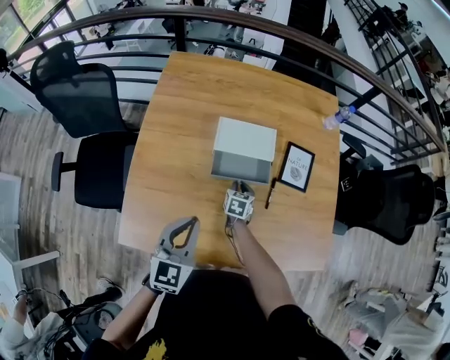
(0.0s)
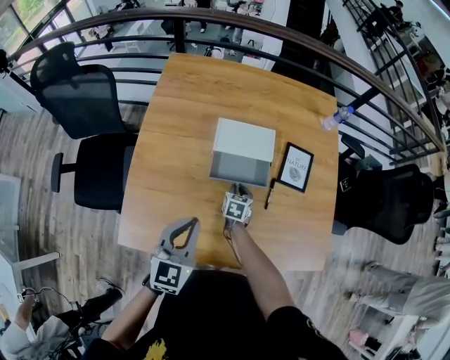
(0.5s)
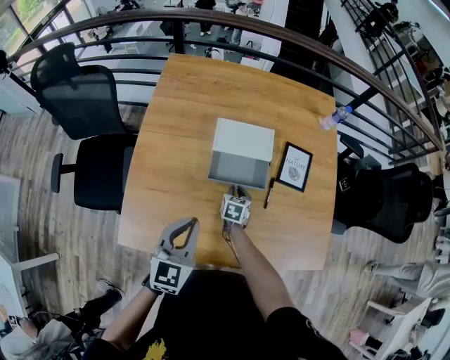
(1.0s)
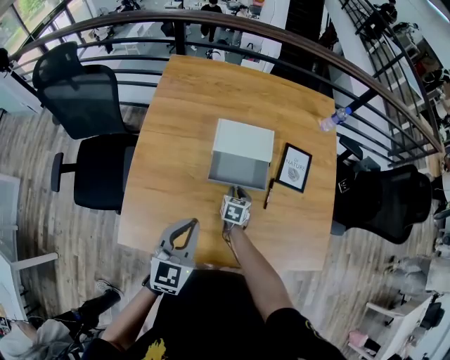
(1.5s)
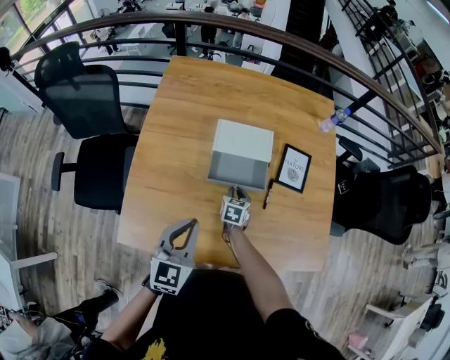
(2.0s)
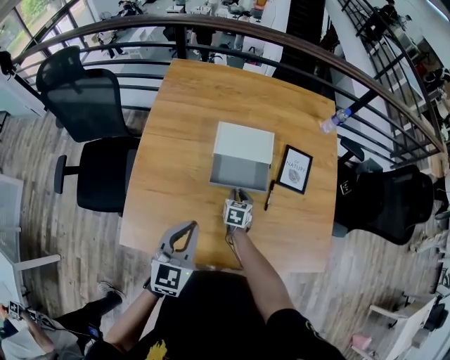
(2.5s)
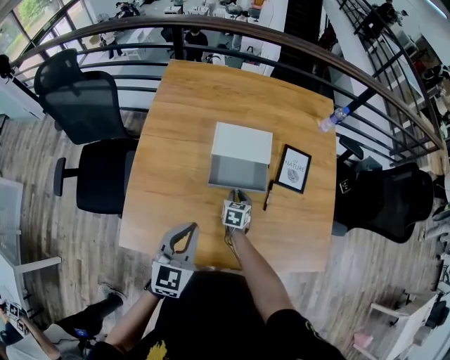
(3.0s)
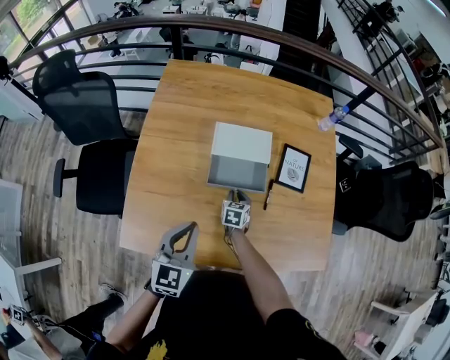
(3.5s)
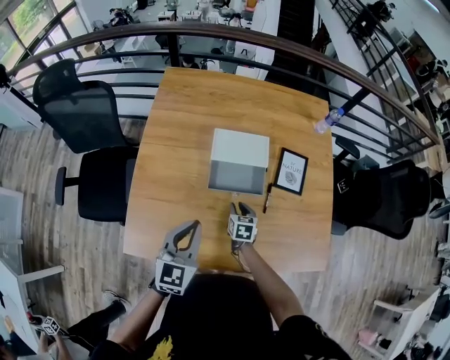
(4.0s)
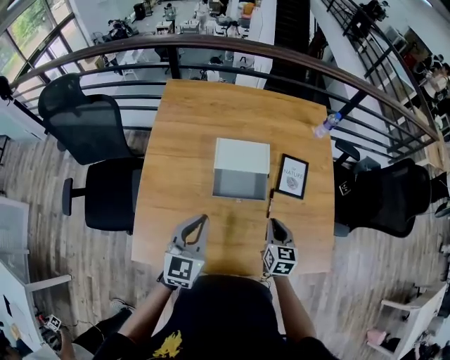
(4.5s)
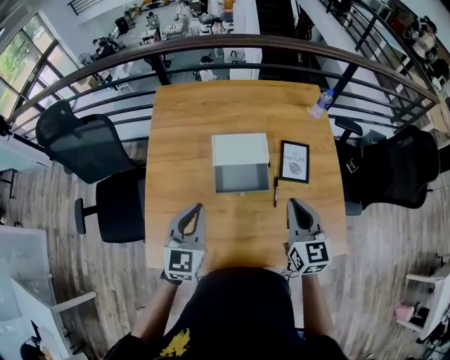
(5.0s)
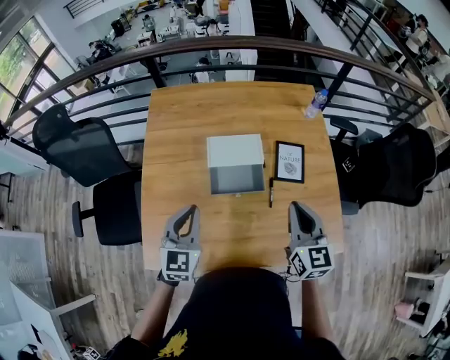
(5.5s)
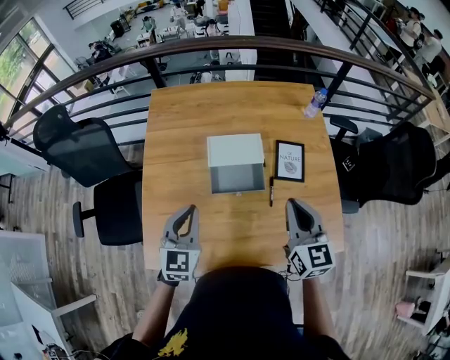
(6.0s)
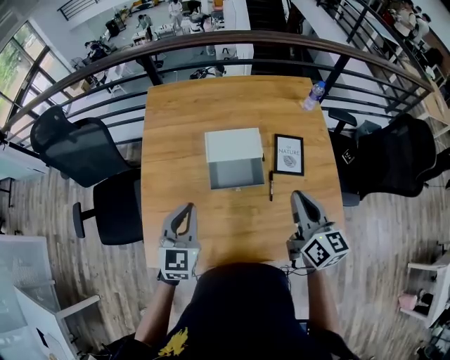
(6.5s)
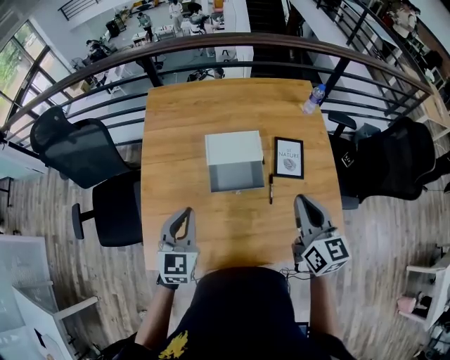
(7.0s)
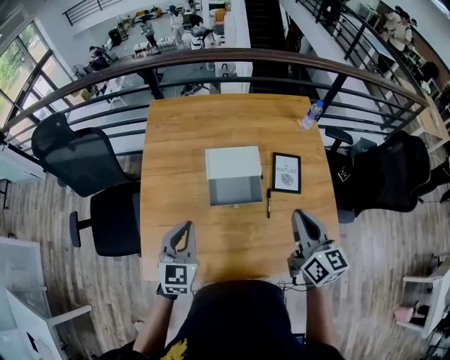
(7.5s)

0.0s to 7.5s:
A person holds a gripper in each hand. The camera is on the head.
0.0s to 2.0s: There are only small adjustments of the grippers.
2.0s to 4.0s: There are only small adjustments of the grippers.
4.0s to 5.5s: The right gripper goes approximately 35 cm upward and to the right, angles its fingers upward, by about 30 degrees, and closes up, while the left gripper shifts roughly 5 cm forward.
5.5s to 7.5s: There are only small adjustments of the grippers.

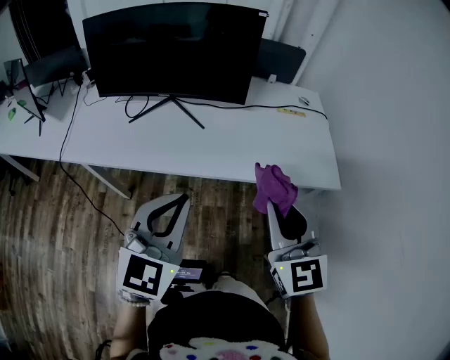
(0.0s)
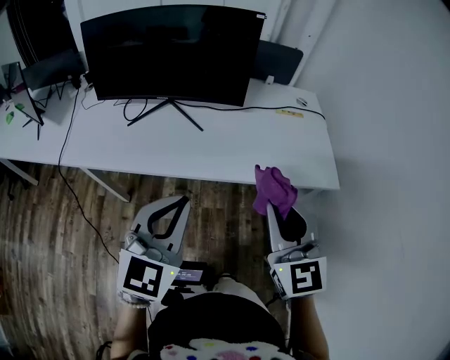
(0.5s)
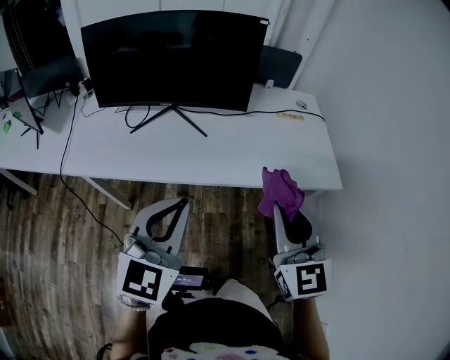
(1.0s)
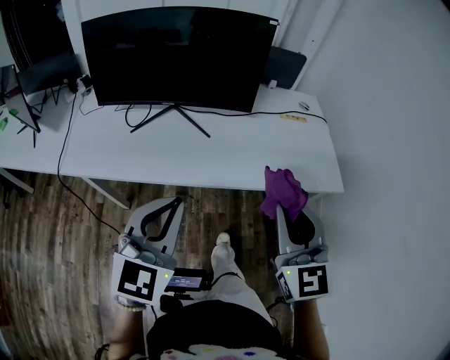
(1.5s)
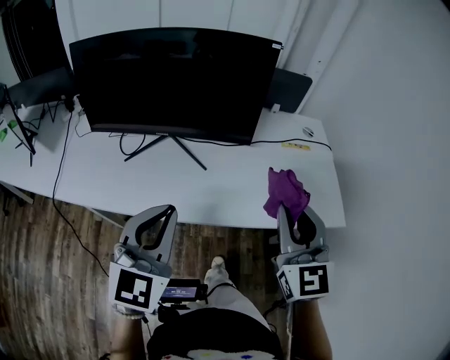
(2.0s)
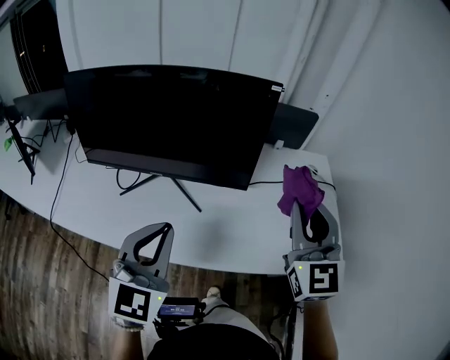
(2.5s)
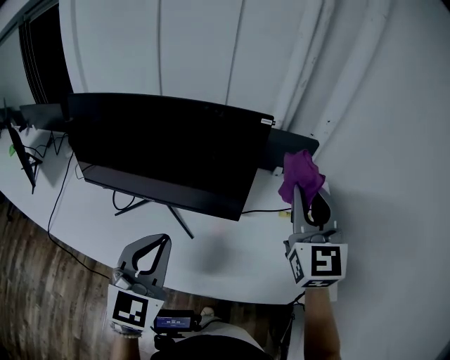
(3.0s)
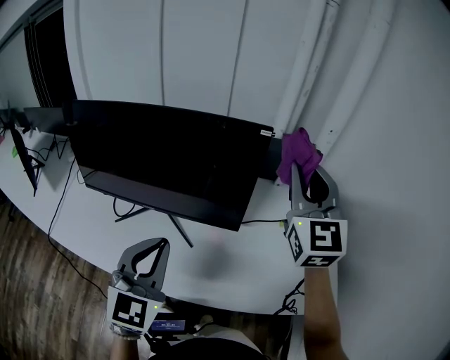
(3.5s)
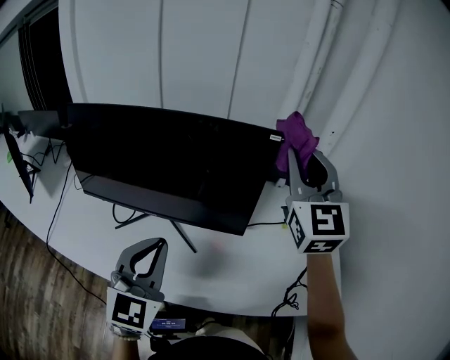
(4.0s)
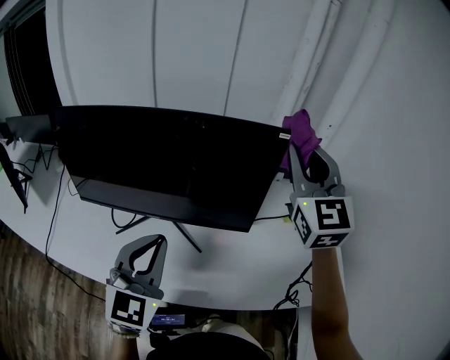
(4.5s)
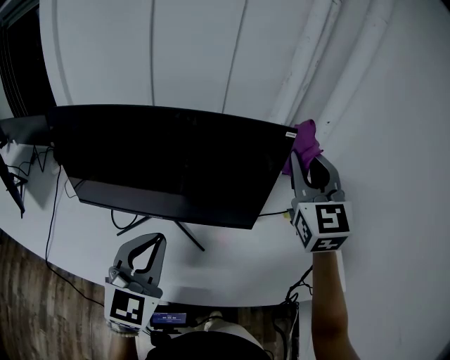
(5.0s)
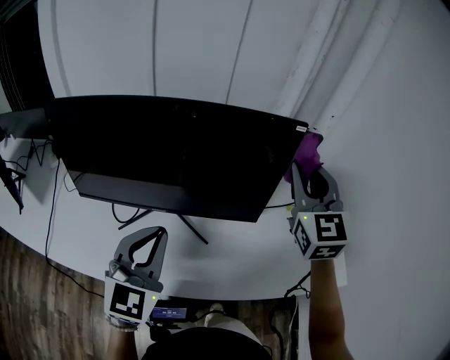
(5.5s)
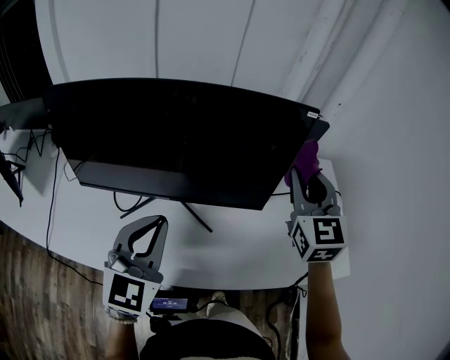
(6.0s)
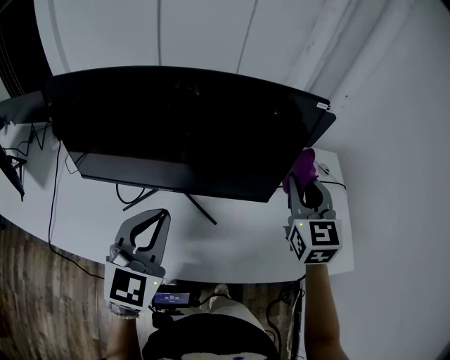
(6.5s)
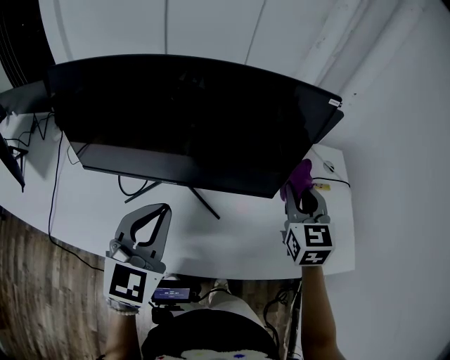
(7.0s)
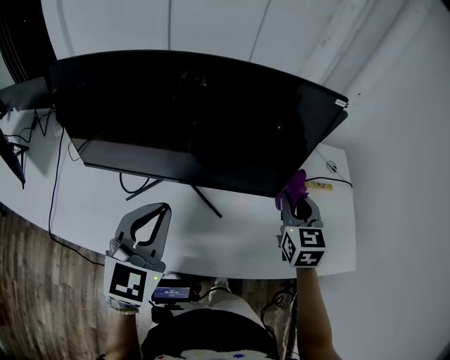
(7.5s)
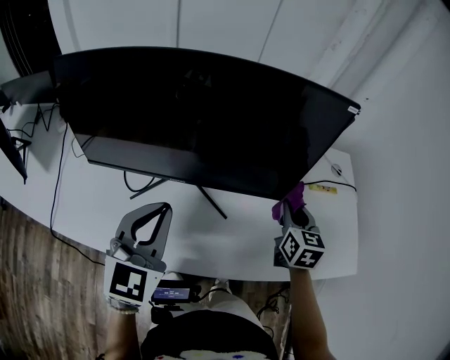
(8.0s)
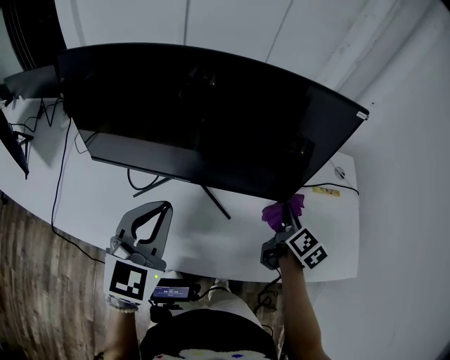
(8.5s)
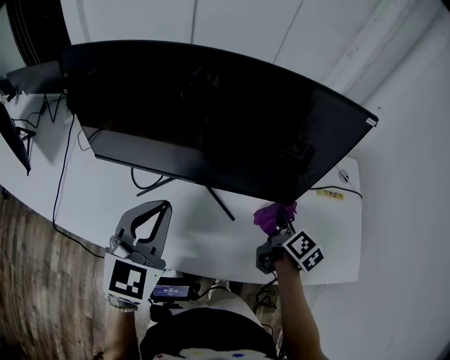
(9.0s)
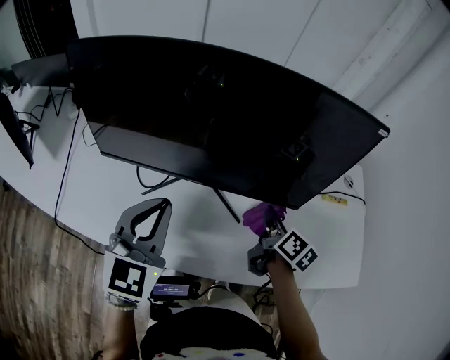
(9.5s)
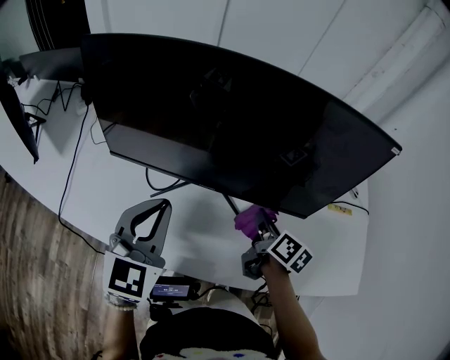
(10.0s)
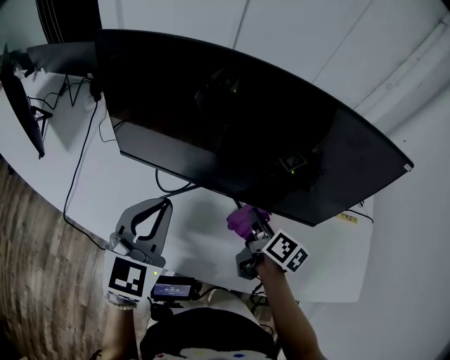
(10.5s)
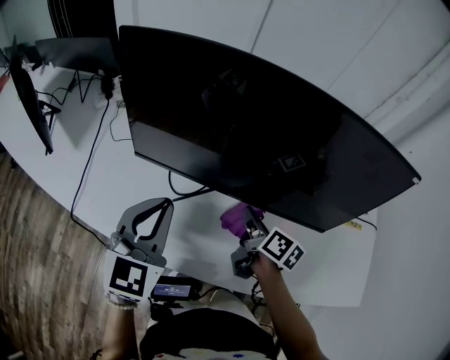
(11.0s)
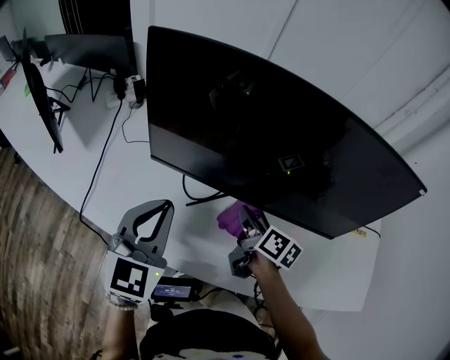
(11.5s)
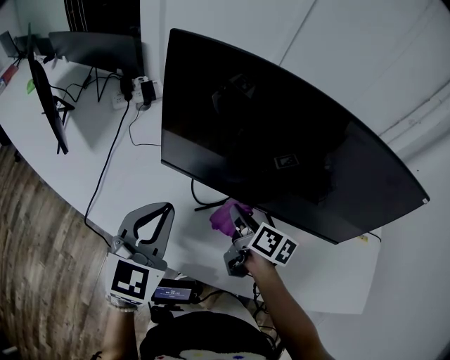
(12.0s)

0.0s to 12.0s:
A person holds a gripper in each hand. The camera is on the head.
0.0s to 2.0s: The left gripper shifts approximately 15 cm forward and to the left, while the right gripper moves forward, roughly 15 cm.
2.0s to 4.0s: The right gripper moves forward and upward, about 35 cm, while the left gripper goes approximately 20 cm forward.
4.0s to 6.0s: The left gripper heads to the left, covering some 10 cm. Meanwhile the right gripper heads downward, covering approximately 10 cm.
6.0s to 8.0s: The right gripper heads downward, covering some 20 cm, and swivels about 30 degrees.
8.0s to 10.0s: The left gripper shifts approximately 10 cm to the left. Meanwhile the right gripper moves to the left, roughly 15 cm, and rotates around the line of its fingers by about 40 degrees, clockwise from behind.
10.0s to 12.0s: The left gripper shifts roughly 15 cm to the left, while the right gripper shifts roughly 25 cm to the left.

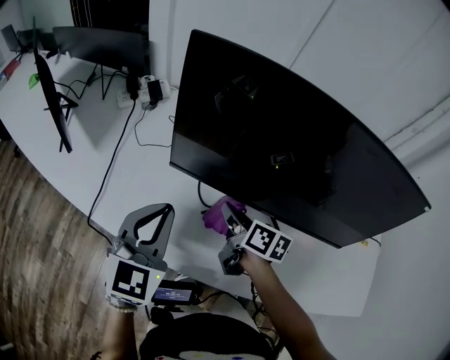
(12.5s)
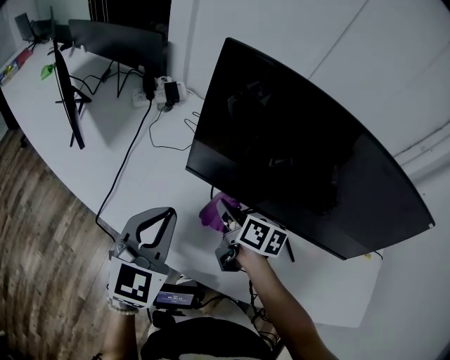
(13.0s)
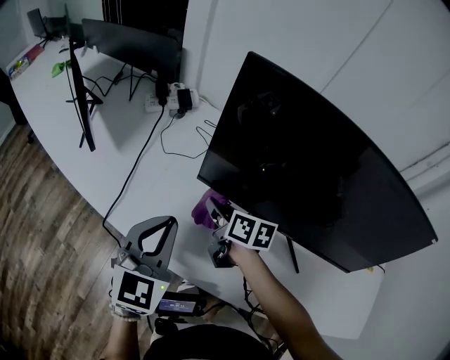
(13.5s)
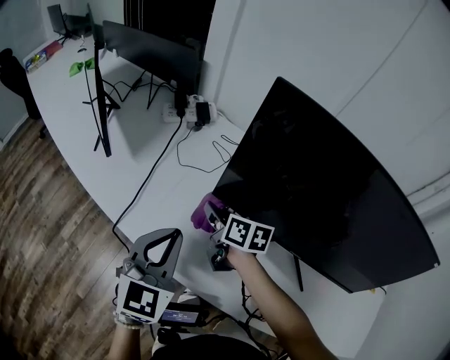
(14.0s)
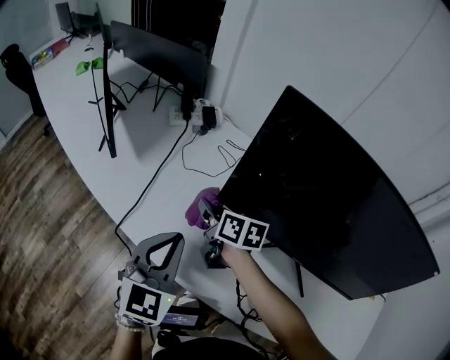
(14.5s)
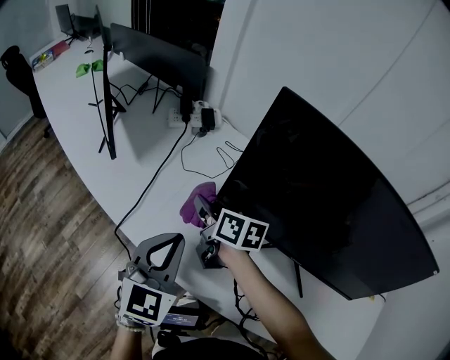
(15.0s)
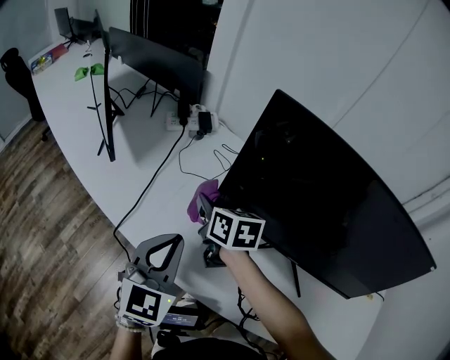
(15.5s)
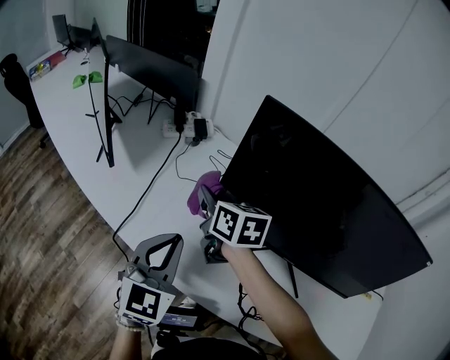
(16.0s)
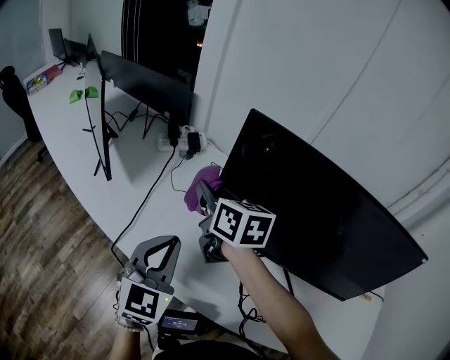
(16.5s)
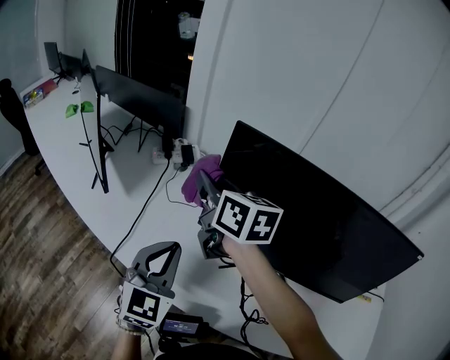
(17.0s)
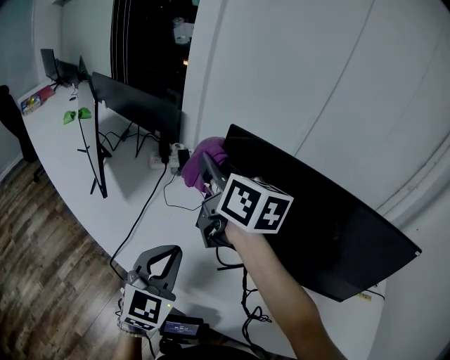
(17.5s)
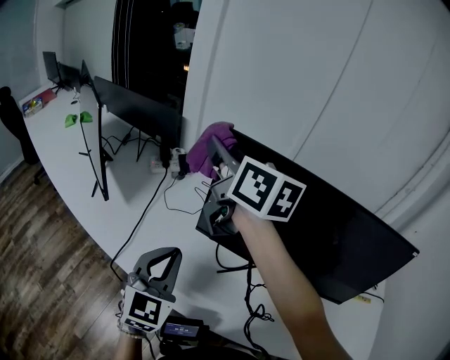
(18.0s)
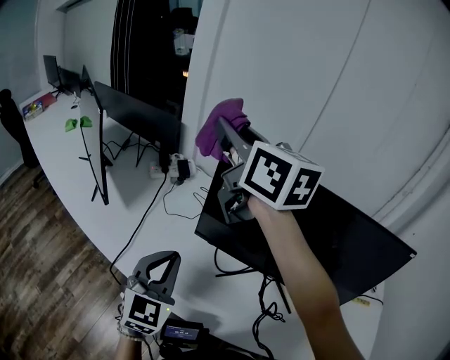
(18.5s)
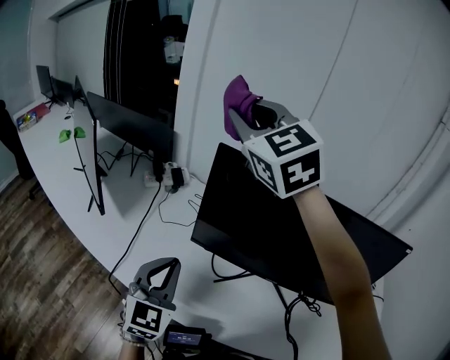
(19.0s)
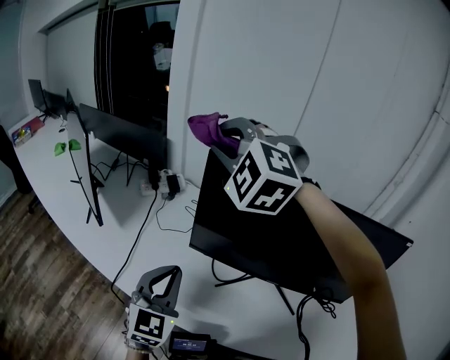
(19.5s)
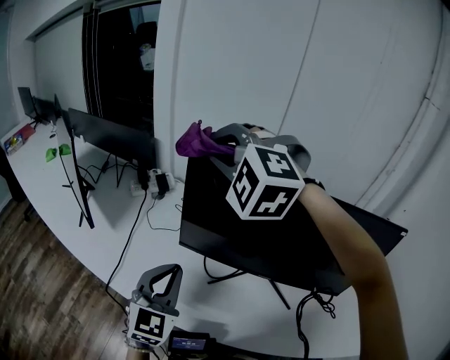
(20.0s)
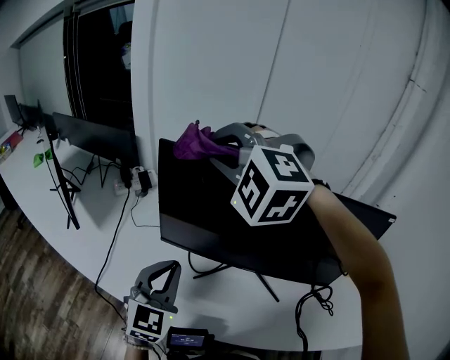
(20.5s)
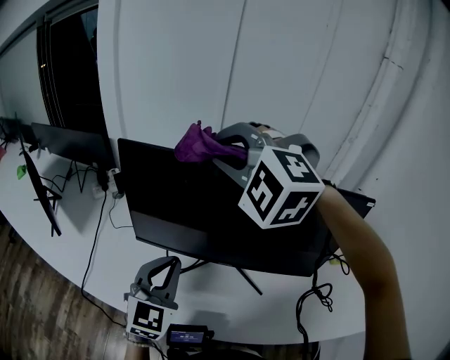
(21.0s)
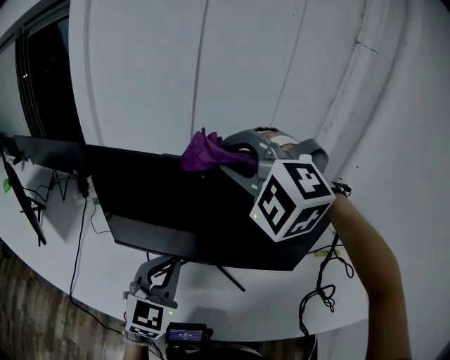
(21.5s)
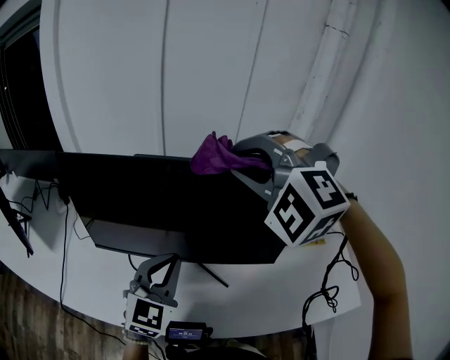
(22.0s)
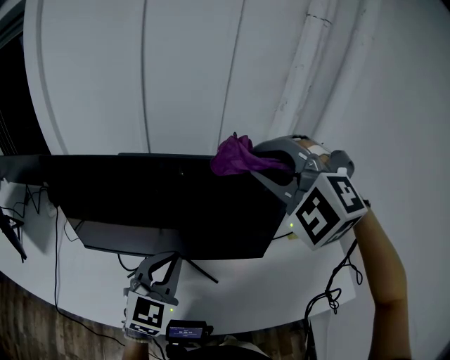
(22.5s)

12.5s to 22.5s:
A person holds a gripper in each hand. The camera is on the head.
12.5s to 14.5s: The left gripper goes some 10 cm to the left; the right gripper heads to the left and forward, covering about 20 cm, and rotates about 20 degrees.
14.5s to 16.5s: The right gripper goes about 15 cm upward, and swivels roughly 20 degrees.
16.5s to 18.5s: The right gripper travels upward by approximately 25 cm, and changes its angle by roughly 30 degrees.
18.5s to 20.5s: Both grippers move to the right, roughly 10 cm. The right gripper rotates around the line of its fingers by approximately 80 degrees, counterclockwise from behind.
20.5s to 22.5s: The two grippers go some 30 cm to the right. The left gripper swivels approximately 20 degrees.
